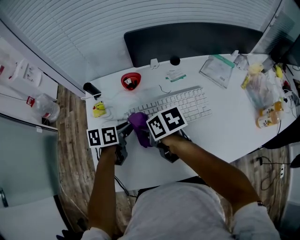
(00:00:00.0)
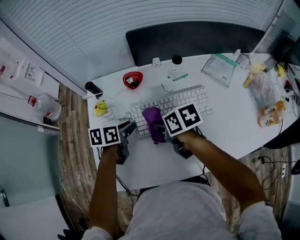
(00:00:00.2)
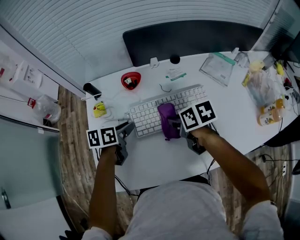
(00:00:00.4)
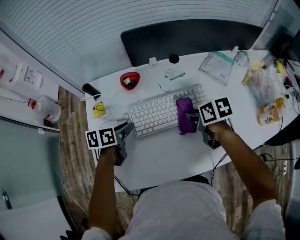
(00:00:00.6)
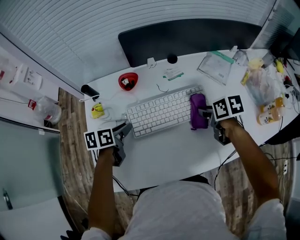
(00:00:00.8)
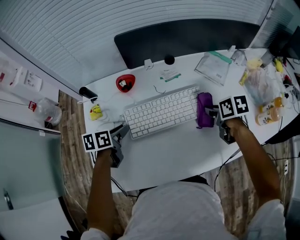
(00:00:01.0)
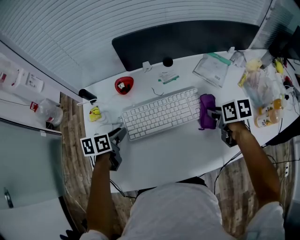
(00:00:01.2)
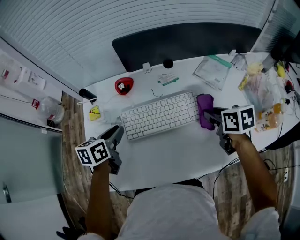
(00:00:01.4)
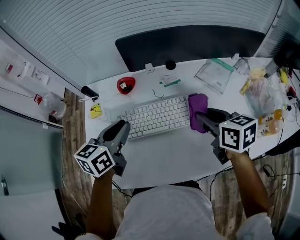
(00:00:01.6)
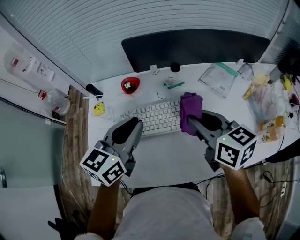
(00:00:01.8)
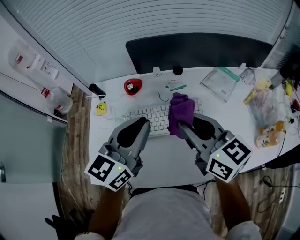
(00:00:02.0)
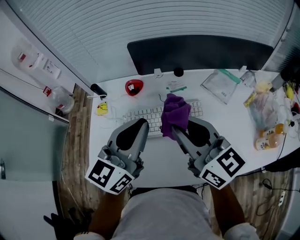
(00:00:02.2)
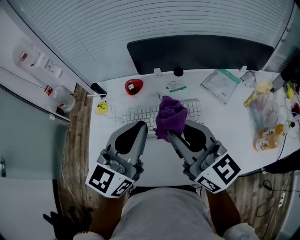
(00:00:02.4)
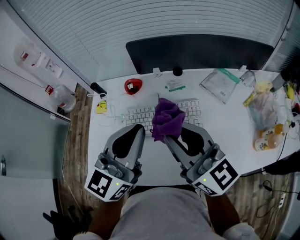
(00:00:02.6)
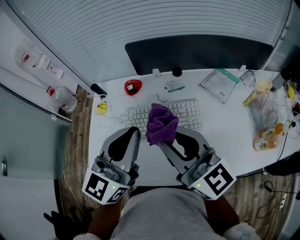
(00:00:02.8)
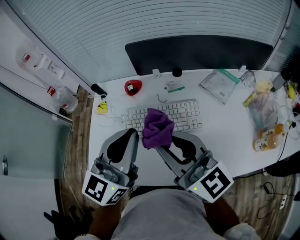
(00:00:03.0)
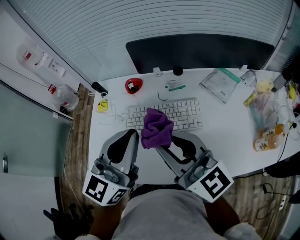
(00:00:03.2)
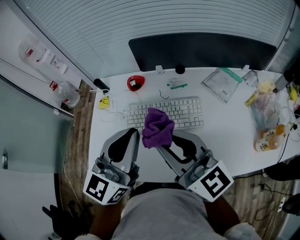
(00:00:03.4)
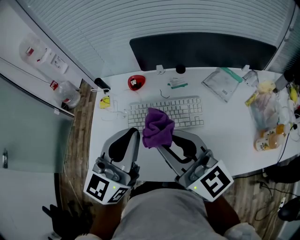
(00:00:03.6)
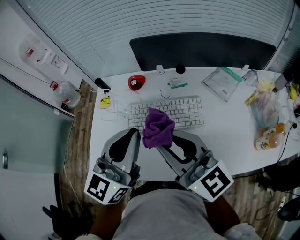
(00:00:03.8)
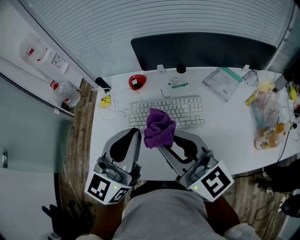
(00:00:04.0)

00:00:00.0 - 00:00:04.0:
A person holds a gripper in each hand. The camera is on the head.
00:00:00.0 - 00:00:01.4: The left gripper is displaced upward by roughly 5 cm. Meanwhile the right gripper heads to the right, covering some 30 cm, and rotates roughly 20 degrees.
00:00:01.4 - 00:00:02.6: The right gripper moves upward and to the left, roughly 25 cm, and angles its fingers upward, by approximately 50 degrees. The left gripper goes roughly 25 cm upward, to the right and backward, angles its fingers upward, by some 40 degrees, and closes up.
00:00:02.6 - 00:00:04.0: The grippers stay close to where they were, moving slightly.

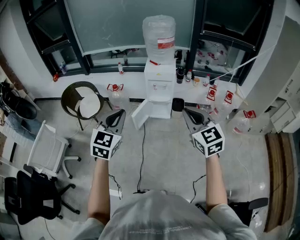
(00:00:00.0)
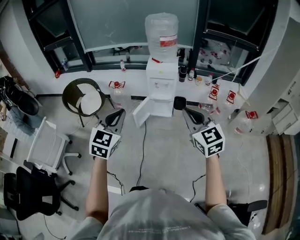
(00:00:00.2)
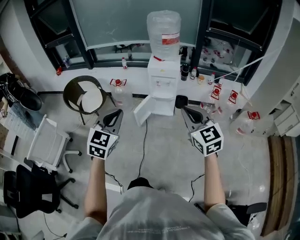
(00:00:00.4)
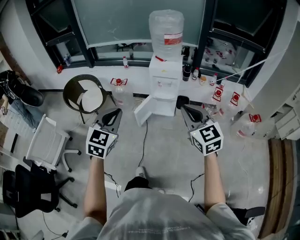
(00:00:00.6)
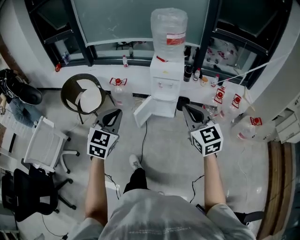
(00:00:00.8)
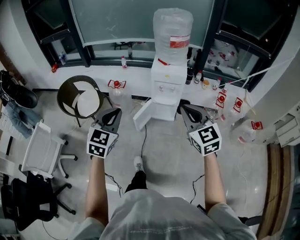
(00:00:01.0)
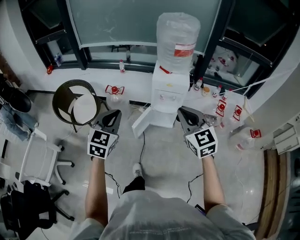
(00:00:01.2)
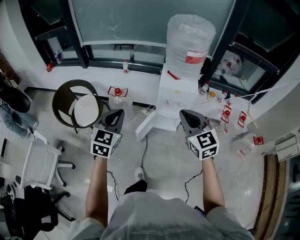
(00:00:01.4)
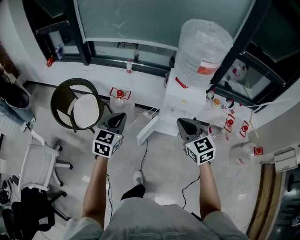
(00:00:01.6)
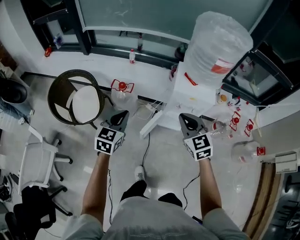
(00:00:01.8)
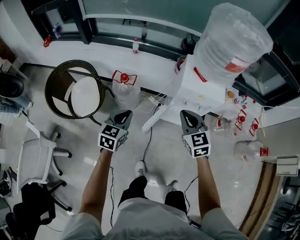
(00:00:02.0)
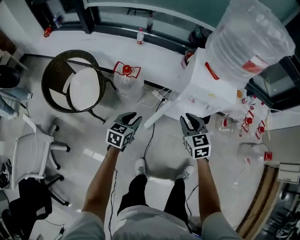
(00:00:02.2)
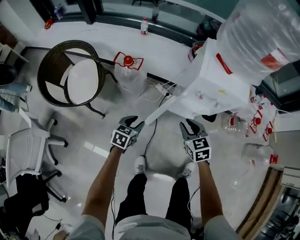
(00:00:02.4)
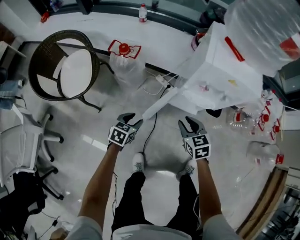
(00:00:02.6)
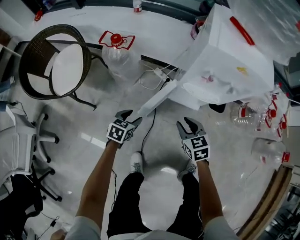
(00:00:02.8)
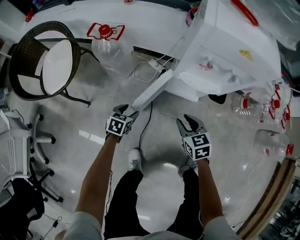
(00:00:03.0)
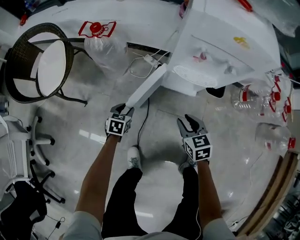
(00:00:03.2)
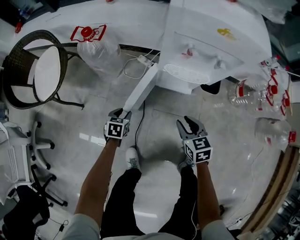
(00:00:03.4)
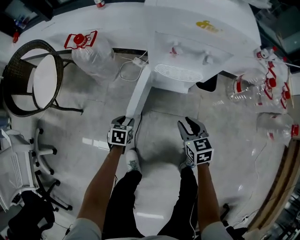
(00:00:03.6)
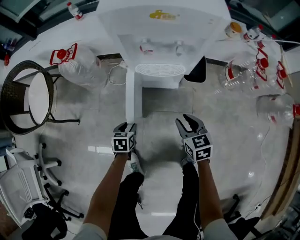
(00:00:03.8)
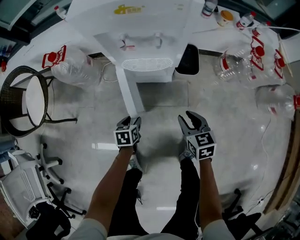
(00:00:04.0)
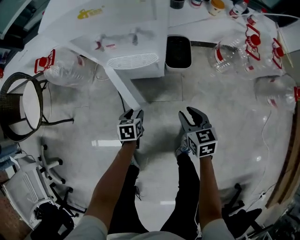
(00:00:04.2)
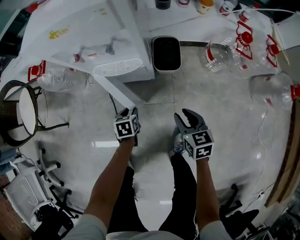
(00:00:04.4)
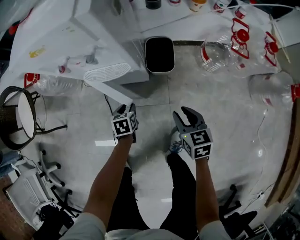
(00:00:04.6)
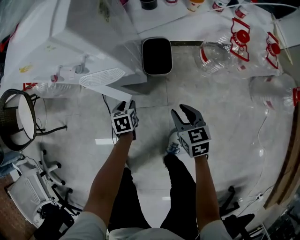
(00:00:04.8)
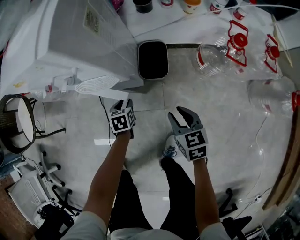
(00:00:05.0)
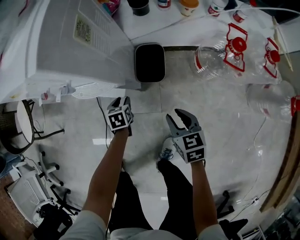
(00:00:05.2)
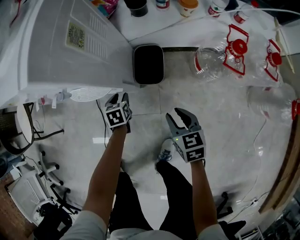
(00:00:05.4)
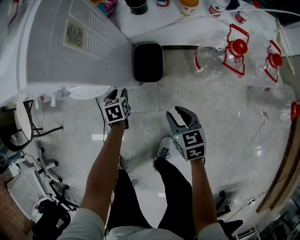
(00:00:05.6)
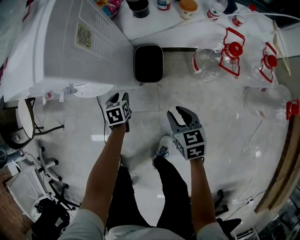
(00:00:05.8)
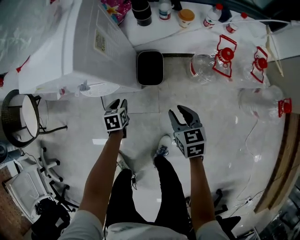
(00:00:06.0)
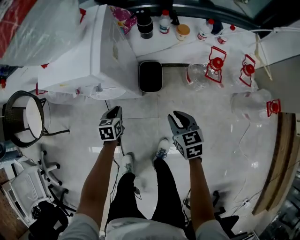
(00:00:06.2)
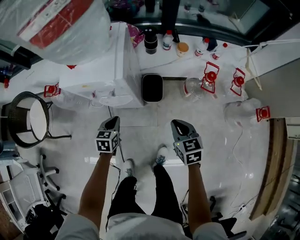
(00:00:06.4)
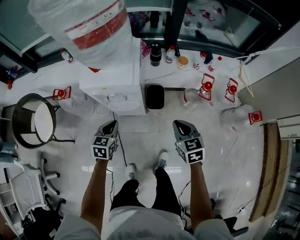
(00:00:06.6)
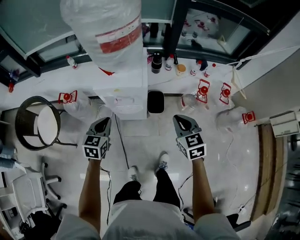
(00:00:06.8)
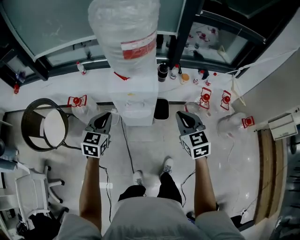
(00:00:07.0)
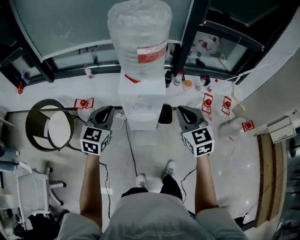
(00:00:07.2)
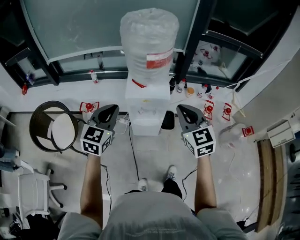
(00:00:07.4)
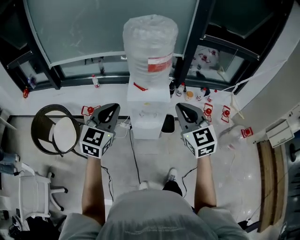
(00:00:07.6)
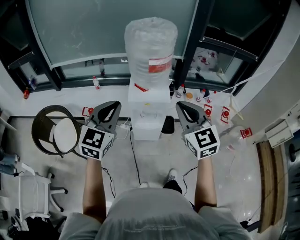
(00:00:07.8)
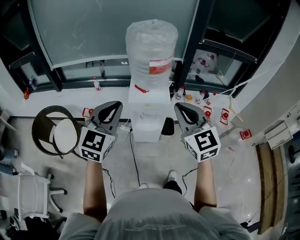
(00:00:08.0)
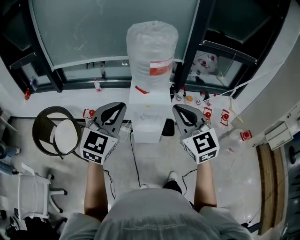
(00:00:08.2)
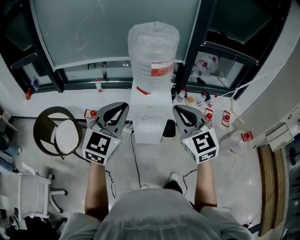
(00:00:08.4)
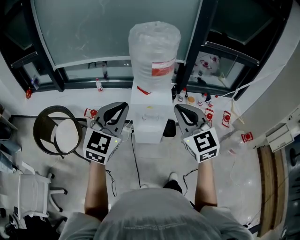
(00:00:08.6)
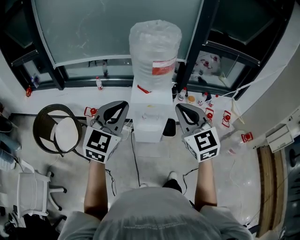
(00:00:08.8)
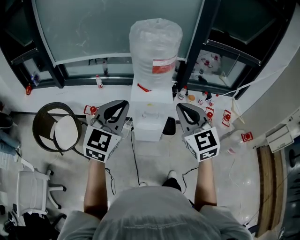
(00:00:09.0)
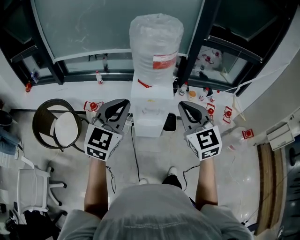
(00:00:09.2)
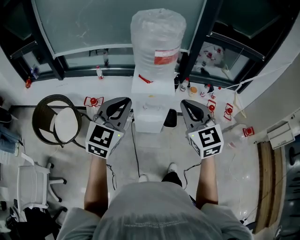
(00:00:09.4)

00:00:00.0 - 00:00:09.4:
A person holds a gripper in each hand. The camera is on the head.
00:00:00.0 - 00:00:01.6: Both grippers are carried forward, roughly 40 cm.
00:00:01.6 - 00:00:03.2: The grippers both shift downward by some 60 cm. The left gripper tips its fingers downward by approximately 30 degrees, and opens up. The right gripper swivels about 30 degrees, and opens up.
00:00:03.2 - 00:00:04.8: The grippers both shift to the right by some 35 cm. The right gripper rotates approximately 20 degrees.
00:00:04.8 - 00:00:06.2: The grippers both shift upward by some 15 cm. The left gripper closes its fingers.
00:00:06.2 - 00:00:07.8: The left gripper goes approximately 60 cm upward, and points its fingers about 50 degrees further upward. Meanwhile the right gripper moves upward and to the left, about 60 cm, and tips its fingers upward by roughly 30 degrees.
00:00:07.8 - 00:00:09.4: The grippers move only a little.

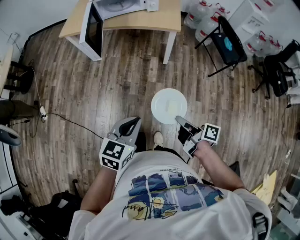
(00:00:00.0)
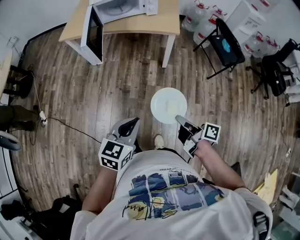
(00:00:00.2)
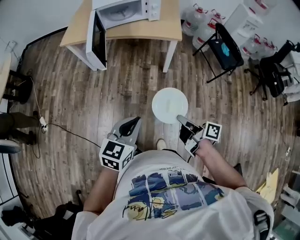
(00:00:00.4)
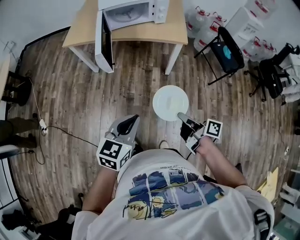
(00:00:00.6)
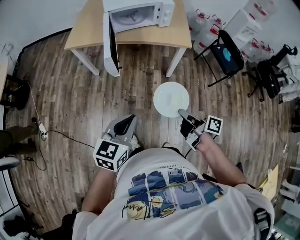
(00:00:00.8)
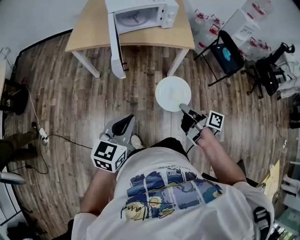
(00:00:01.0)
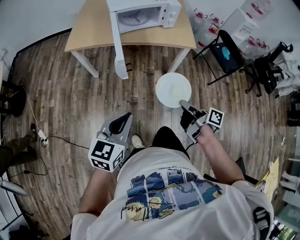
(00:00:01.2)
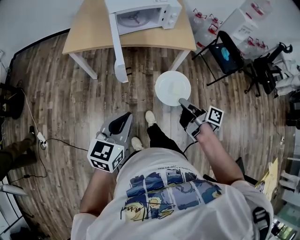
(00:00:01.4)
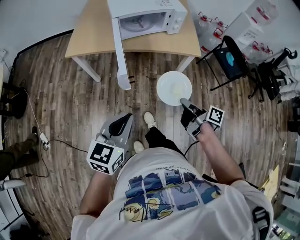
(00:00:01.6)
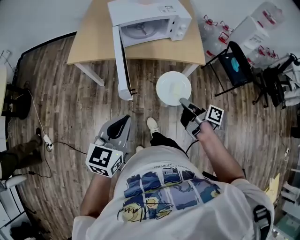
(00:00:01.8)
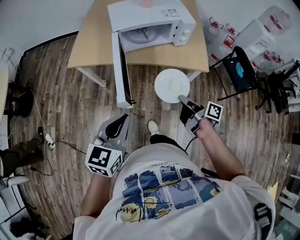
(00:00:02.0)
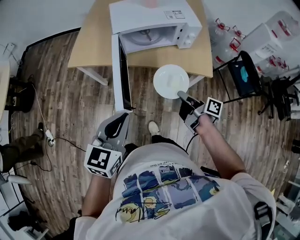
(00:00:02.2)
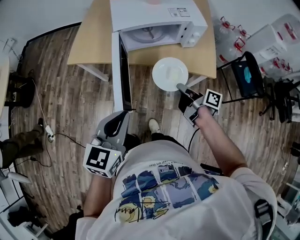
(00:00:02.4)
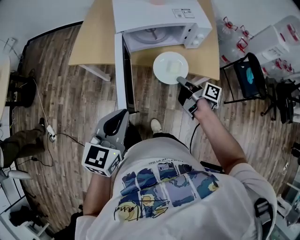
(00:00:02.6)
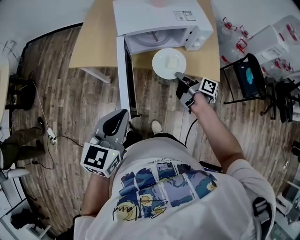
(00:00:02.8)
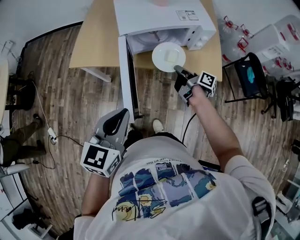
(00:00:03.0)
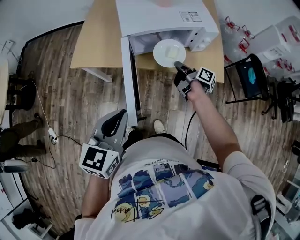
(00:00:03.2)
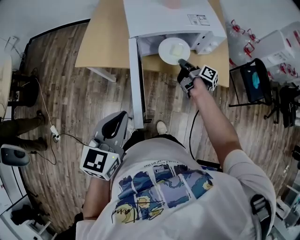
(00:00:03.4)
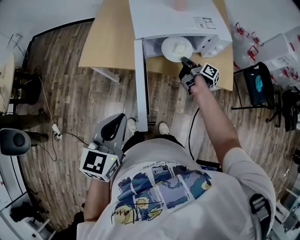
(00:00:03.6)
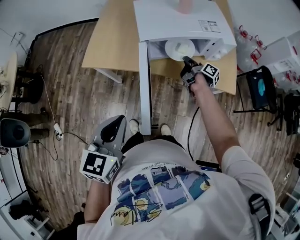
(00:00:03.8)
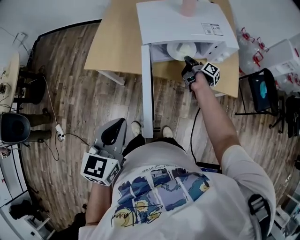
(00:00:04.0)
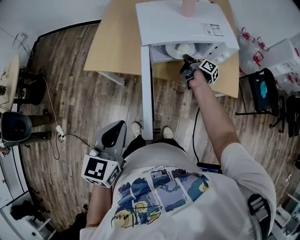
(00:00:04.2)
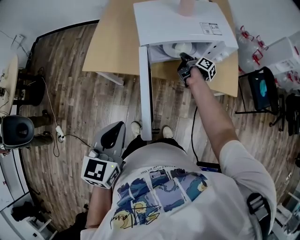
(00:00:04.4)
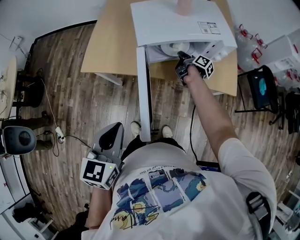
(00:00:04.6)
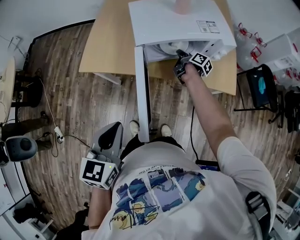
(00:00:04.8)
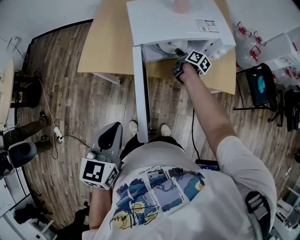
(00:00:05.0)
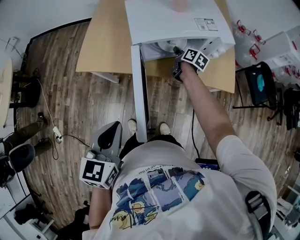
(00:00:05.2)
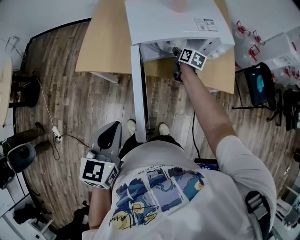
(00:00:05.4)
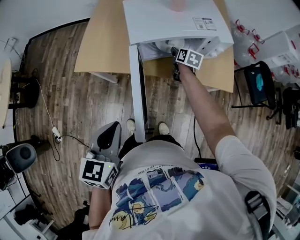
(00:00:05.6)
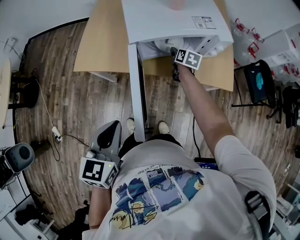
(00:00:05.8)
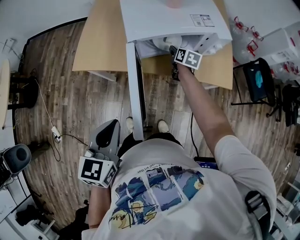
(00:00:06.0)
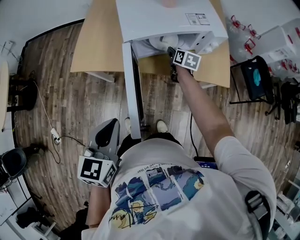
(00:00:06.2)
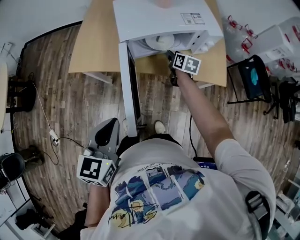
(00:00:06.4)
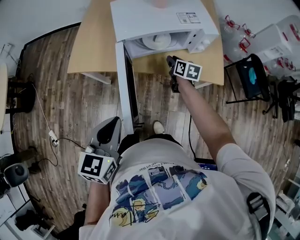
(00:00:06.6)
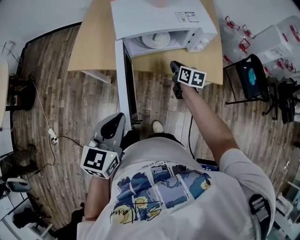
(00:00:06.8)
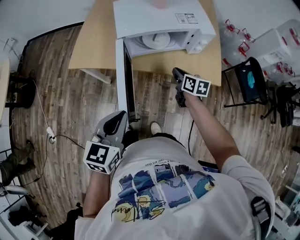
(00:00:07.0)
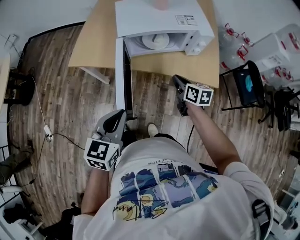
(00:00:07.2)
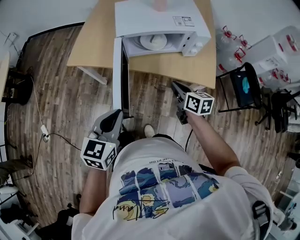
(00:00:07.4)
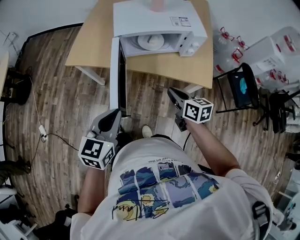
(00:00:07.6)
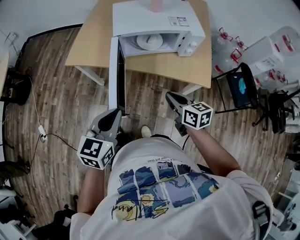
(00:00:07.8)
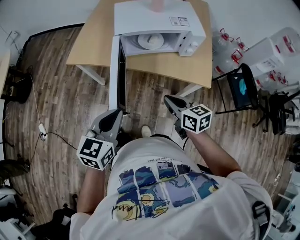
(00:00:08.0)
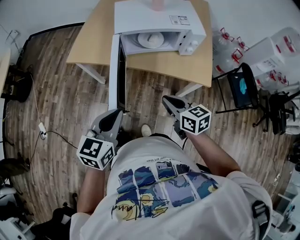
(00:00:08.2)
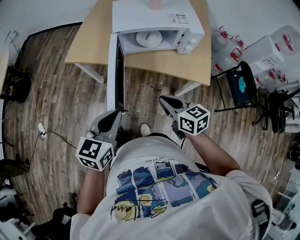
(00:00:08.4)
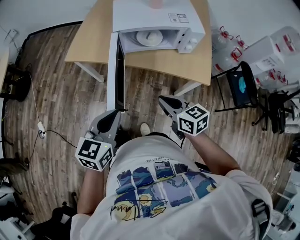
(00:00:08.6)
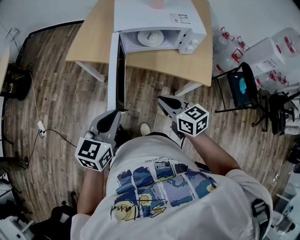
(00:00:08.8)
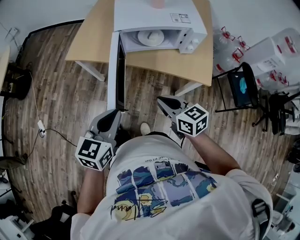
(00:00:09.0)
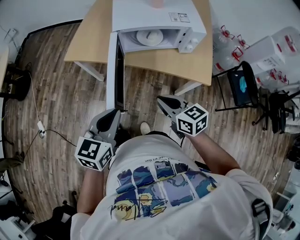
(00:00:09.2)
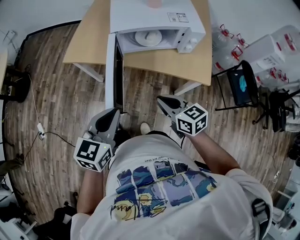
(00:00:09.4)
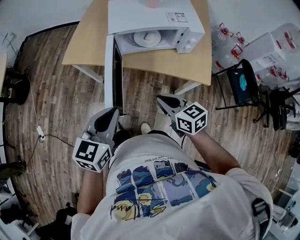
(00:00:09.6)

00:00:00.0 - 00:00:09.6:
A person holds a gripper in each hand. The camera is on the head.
00:00:00.0 - 00:00:01.6: The left gripper shifts about 30 cm to the left and forward, while the right gripper is displaced forward and to the left by approximately 30 cm.
00:00:01.6 - 00:00:03.2: The left gripper goes approximately 20 cm forward, while the right gripper goes approximately 40 cm forward.
00:00:03.2 - 00:00:04.8: The right gripper moves forward, about 15 cm. Meanwhile the left gripper travels to the left by about 5 cm.
00:00:04.8 - 00:00:06.4: The right gripper shifts by roughly 5 cm, rolls counterclockwise, seen from behind, by approximately 40 degrees, and opens.
00:00:06.4 - 00:00:08.0: The right gripper shifts about 30 cm backward and upward, turns by some 30 degrees, and closes, while the left gripper heads to the right and backward, covering approximately 10 cm.
00:00:08.0 - 00:00:09.6: The grippers move only a little.
